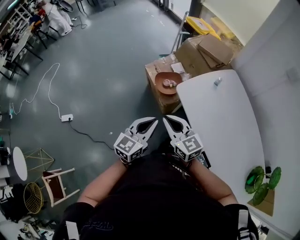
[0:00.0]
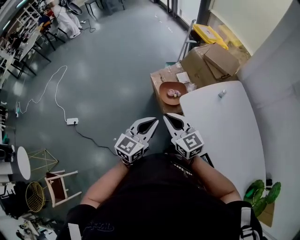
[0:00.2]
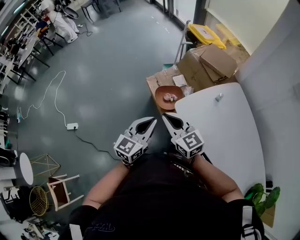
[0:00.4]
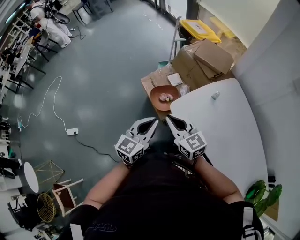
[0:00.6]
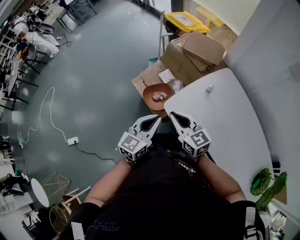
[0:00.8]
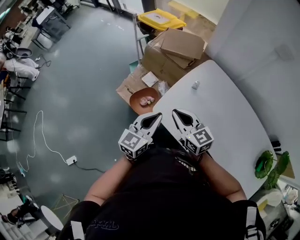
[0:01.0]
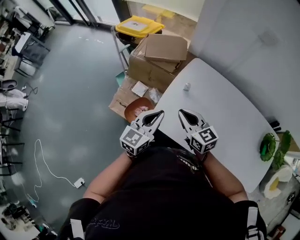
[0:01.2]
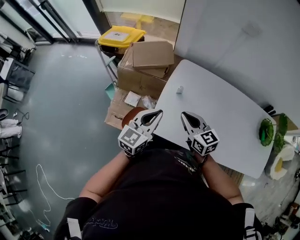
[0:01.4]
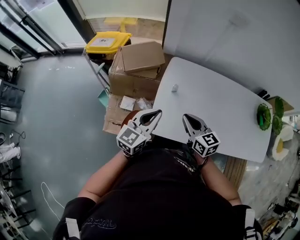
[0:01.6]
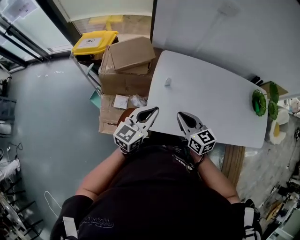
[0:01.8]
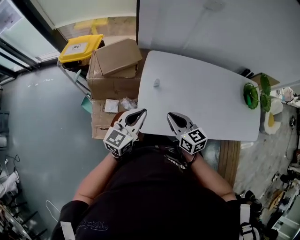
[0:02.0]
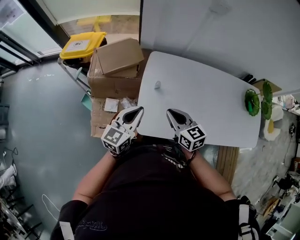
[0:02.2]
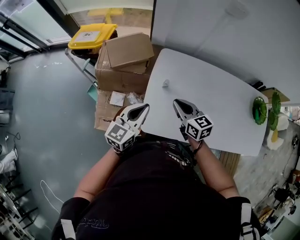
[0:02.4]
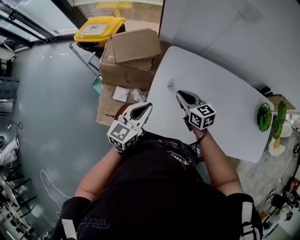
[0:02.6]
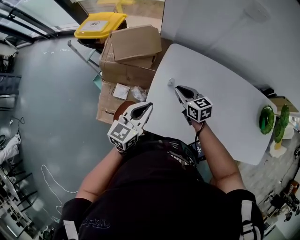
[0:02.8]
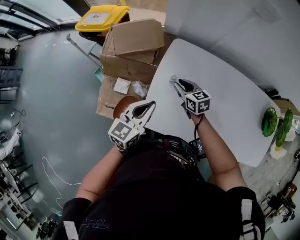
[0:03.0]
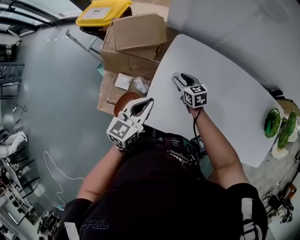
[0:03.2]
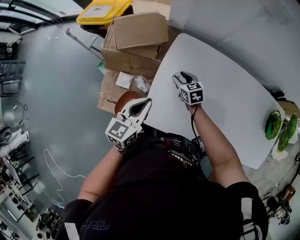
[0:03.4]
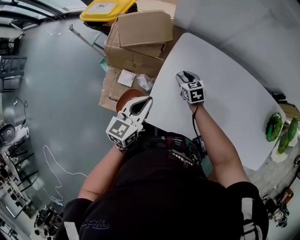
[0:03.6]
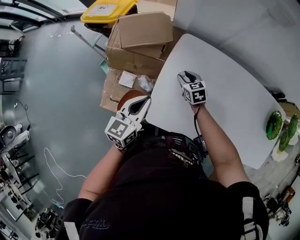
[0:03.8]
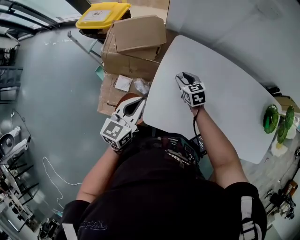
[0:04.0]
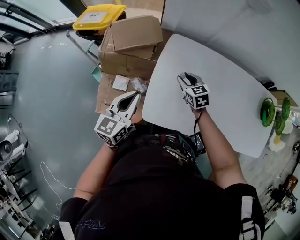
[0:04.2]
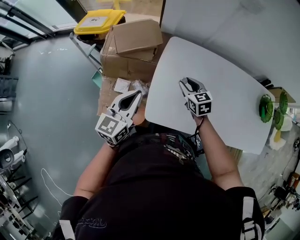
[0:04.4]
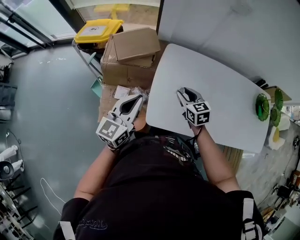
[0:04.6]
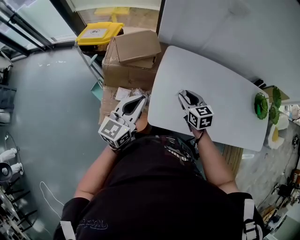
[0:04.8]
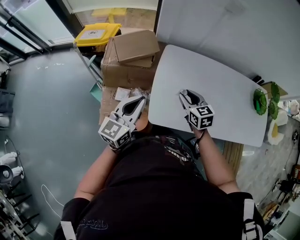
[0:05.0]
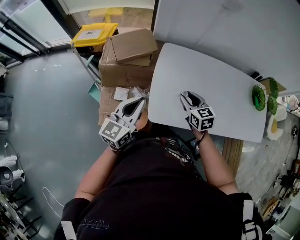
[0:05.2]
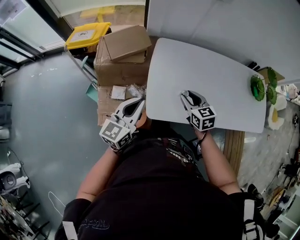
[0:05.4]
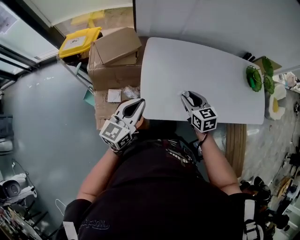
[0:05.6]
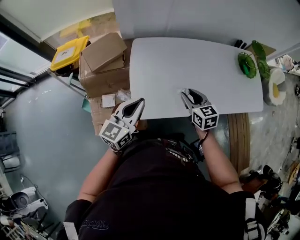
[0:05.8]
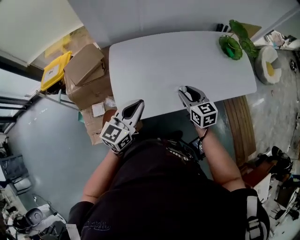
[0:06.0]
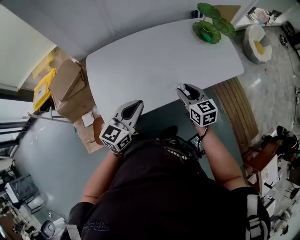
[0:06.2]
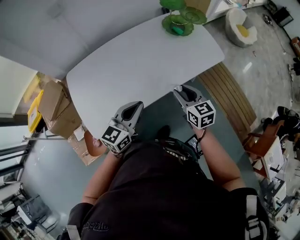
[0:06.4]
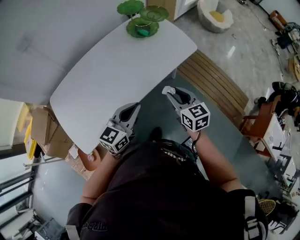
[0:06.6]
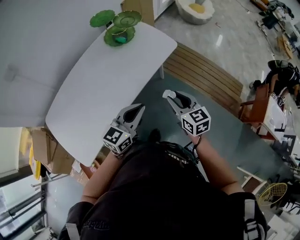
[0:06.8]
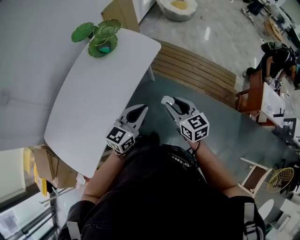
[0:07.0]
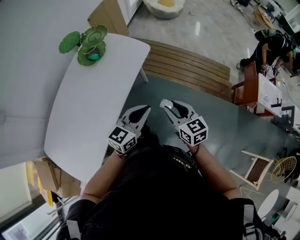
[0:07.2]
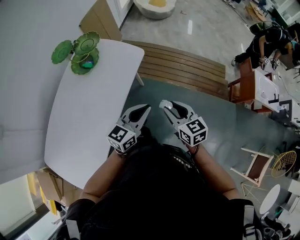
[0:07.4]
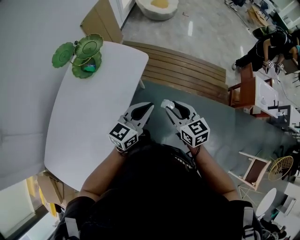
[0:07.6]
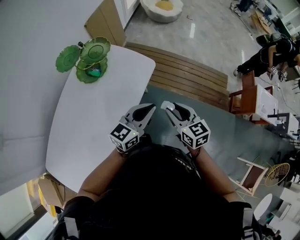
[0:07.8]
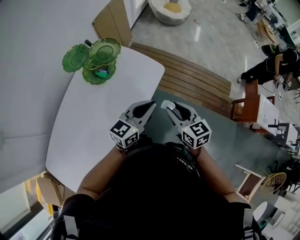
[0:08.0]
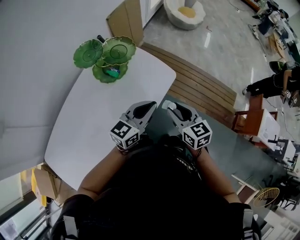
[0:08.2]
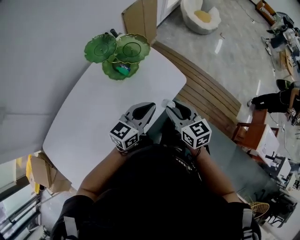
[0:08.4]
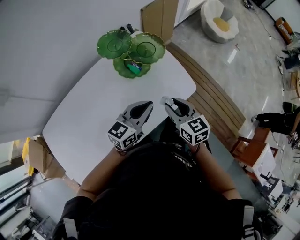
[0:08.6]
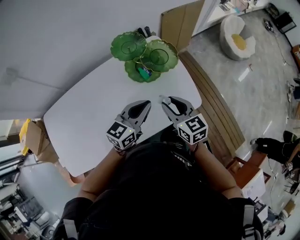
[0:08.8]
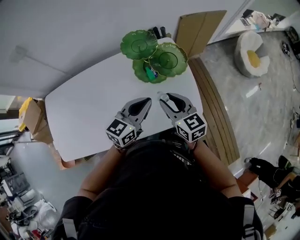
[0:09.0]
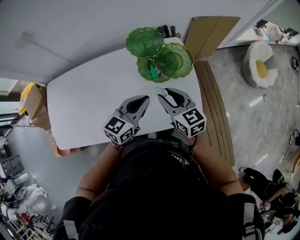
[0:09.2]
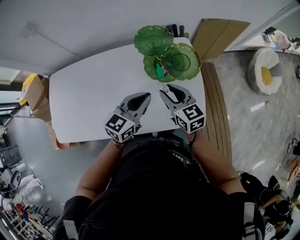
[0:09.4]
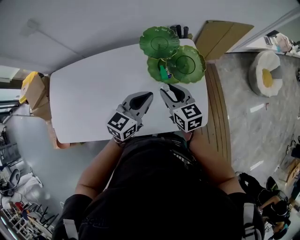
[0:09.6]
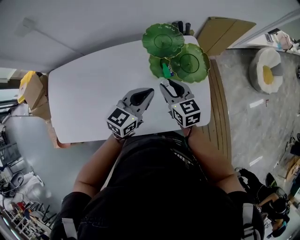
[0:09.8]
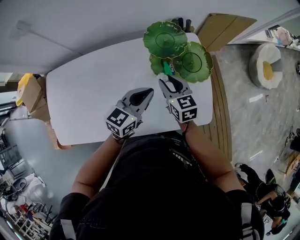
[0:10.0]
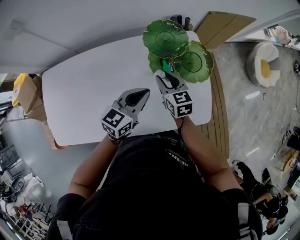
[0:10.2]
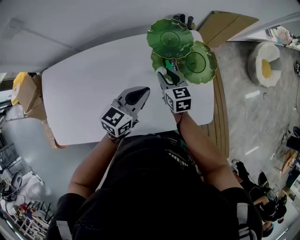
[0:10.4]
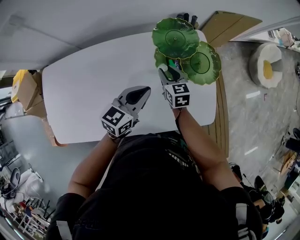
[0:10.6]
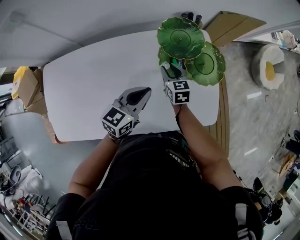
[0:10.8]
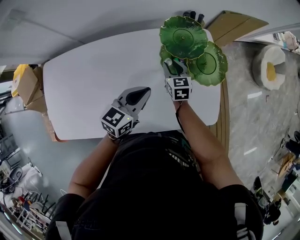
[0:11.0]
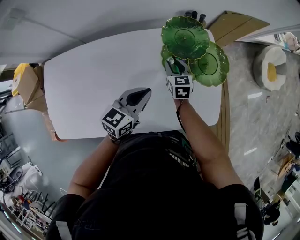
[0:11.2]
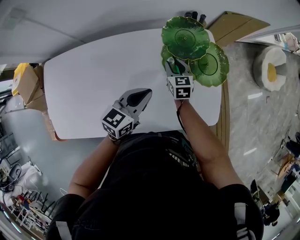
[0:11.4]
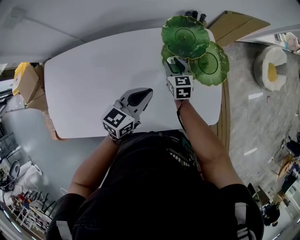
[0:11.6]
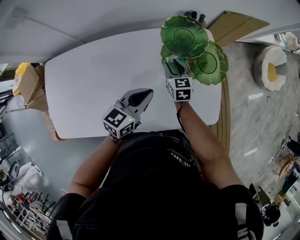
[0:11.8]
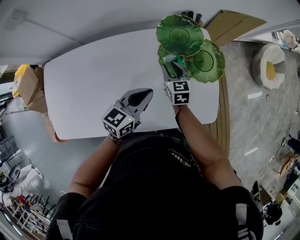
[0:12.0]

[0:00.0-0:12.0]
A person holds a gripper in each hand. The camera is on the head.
0:00.0 to 0:01.6: The left gripper ends up some 40 cm from where it was, and changes its angle by some 60 degrees, while the right gripper changes place by approximately 35 cm, and rotates approximately 60 degrees.
0:01.6 to 0:03.0: The left gripper moves forward and downward, approximately 10 cm. Meanwhile the right gripper heads forward and downward, covering approximately 25 cm.
0:03.0 to 0:04.4: The left gripper heads to the left, covering about 10 cm, while the right gripper is displaced backward by about 5 cm.
0:04.4 to 0:06.0: The right gripper changes place by about 30 cm, and rotates some 30 degrees, while the left gripper ends up approximately 20 cm from where it was, and swivels about 30 degrees.
0:06.0 to 0:07.6: The two grippers travel together, approximately 60 cm. The left gripper changes its angle by about 60 degrees. Meanwhile the right gripper turns by some 50 degrees.
0:07.6 to 0:09.0: The left gripper ends up roughly 35 cm from where it was, and changes its angle by approximately 50 degrees. Meanwhile the right gripper ends up about 40 cm from where it was, and turns by about 50 degrees.
0:09.0 to 0:10.4: The right gripper goes approximately 20 cm forward, downward and to the left, while the left gripper travels to the left, forward and downward by approximately 15 cm.

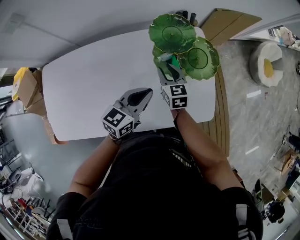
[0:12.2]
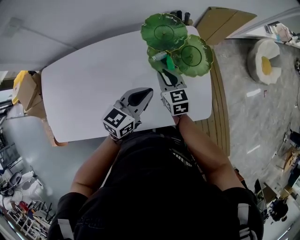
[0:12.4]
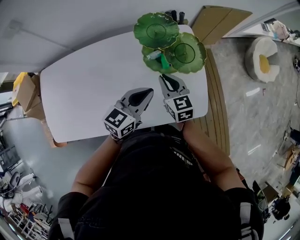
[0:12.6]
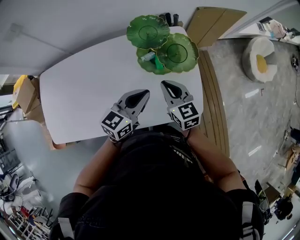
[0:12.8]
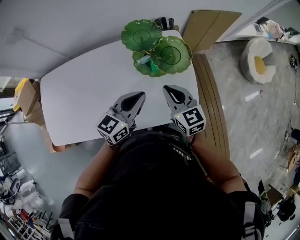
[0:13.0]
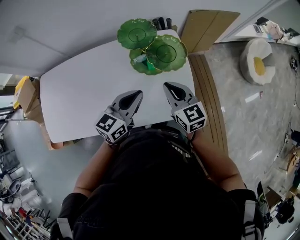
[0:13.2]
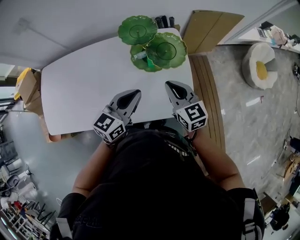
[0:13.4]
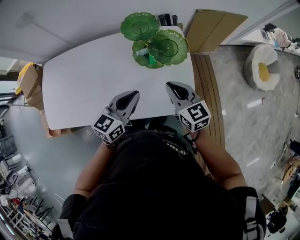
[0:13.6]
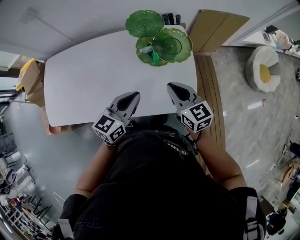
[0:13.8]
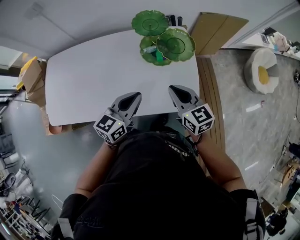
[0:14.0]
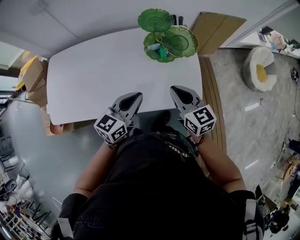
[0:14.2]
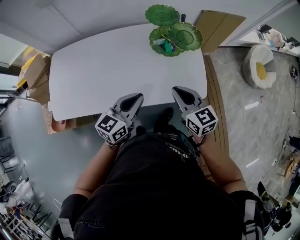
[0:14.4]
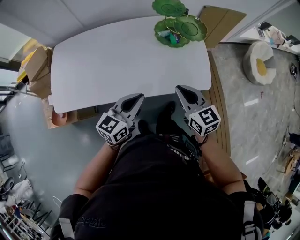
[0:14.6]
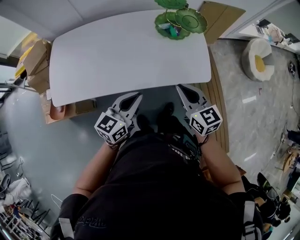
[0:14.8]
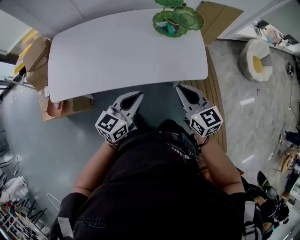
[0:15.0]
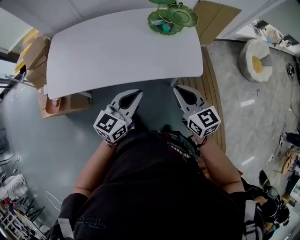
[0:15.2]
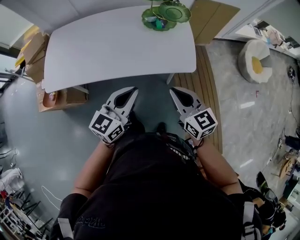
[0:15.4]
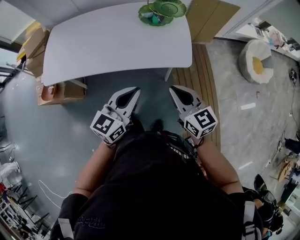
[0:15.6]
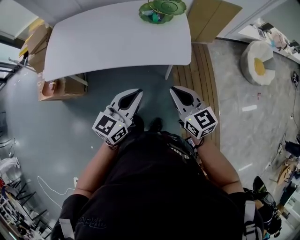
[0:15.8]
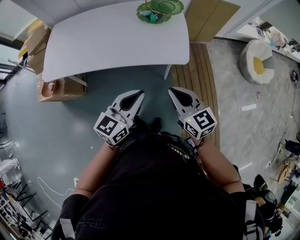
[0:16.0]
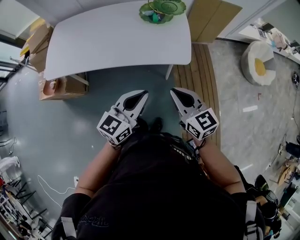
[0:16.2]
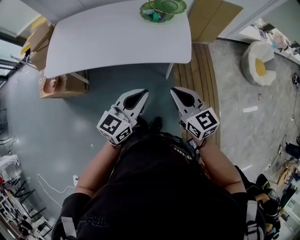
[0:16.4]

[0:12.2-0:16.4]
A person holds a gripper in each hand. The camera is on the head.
0:12.2 to 0:13.6: The right gripper goes approximately 25 cm to the right, upward and backward, rotates approximately 20 degrees, and closes, while the left gripper is displaced to the right, backward and upward by approximately 15 cm.
0:13.6 to 0:15.0: The right gripper shifts about 25 cm backward, while the left gripper travels backward and to the left by roughly 25 cm.
0:15.0 to 0:16.4: Both grippers travel together to the right and backward, roughly 20 cm.

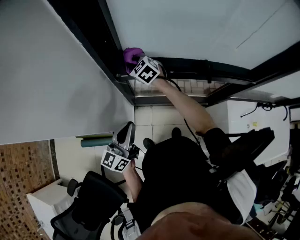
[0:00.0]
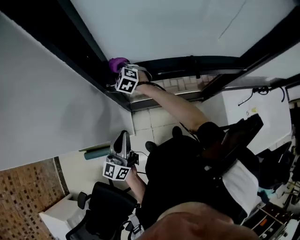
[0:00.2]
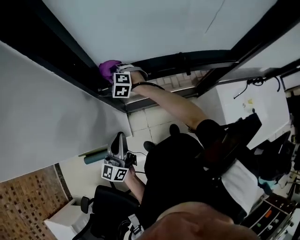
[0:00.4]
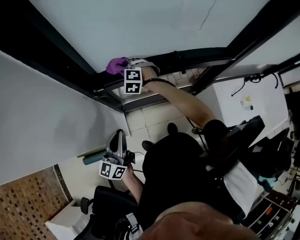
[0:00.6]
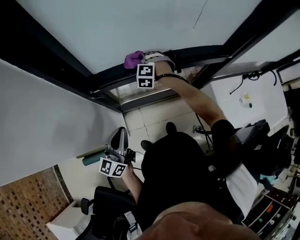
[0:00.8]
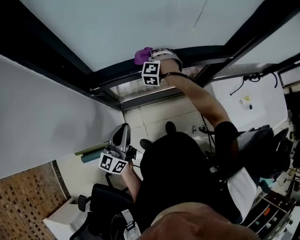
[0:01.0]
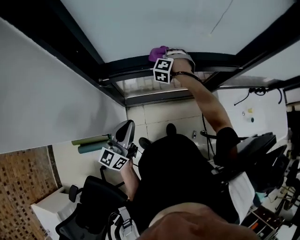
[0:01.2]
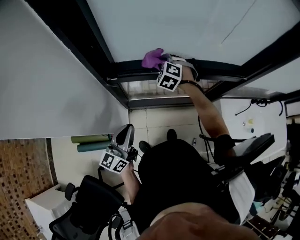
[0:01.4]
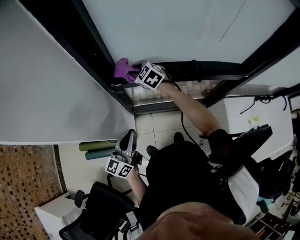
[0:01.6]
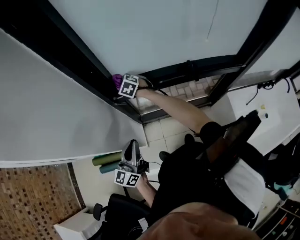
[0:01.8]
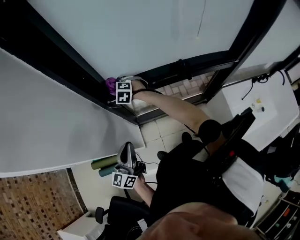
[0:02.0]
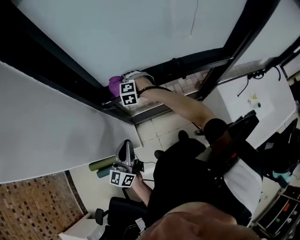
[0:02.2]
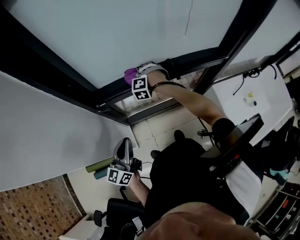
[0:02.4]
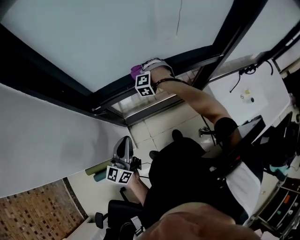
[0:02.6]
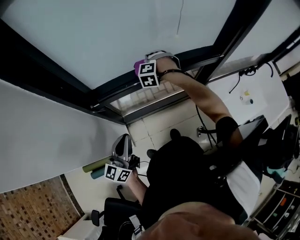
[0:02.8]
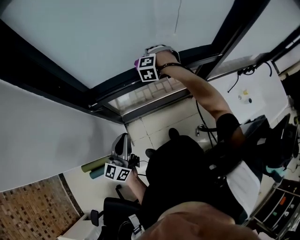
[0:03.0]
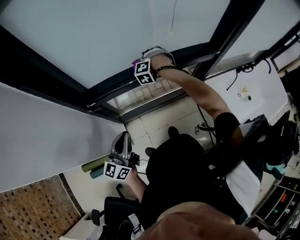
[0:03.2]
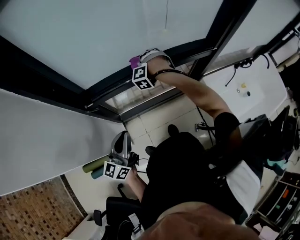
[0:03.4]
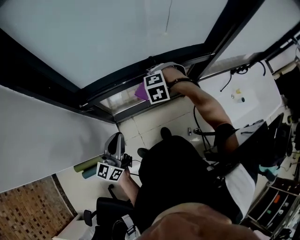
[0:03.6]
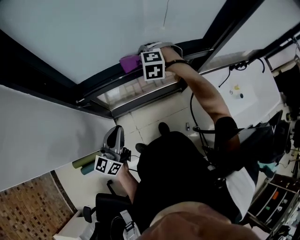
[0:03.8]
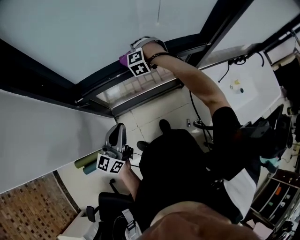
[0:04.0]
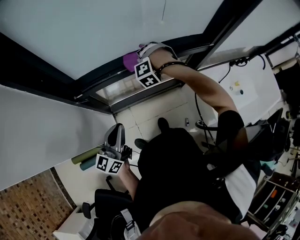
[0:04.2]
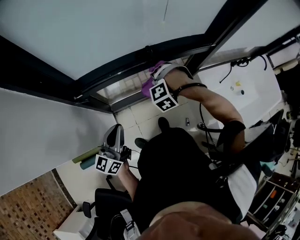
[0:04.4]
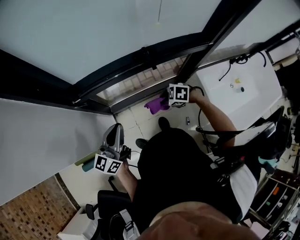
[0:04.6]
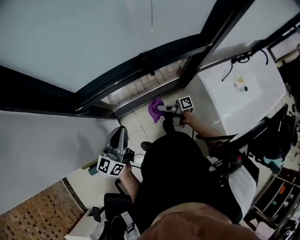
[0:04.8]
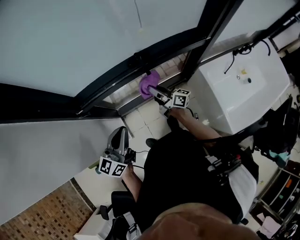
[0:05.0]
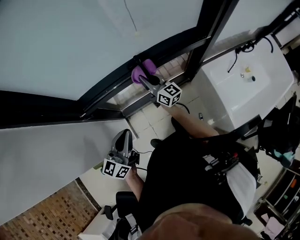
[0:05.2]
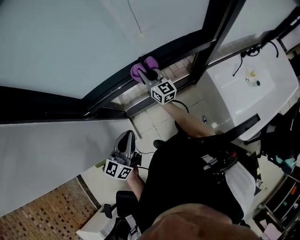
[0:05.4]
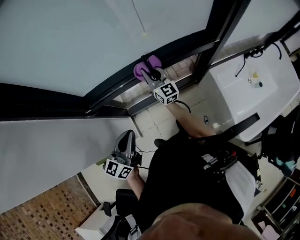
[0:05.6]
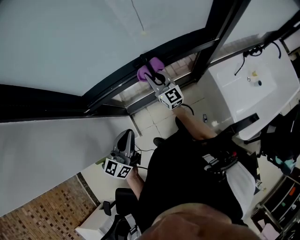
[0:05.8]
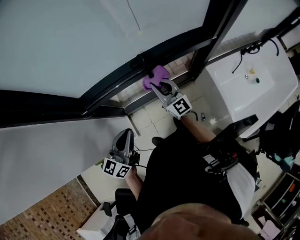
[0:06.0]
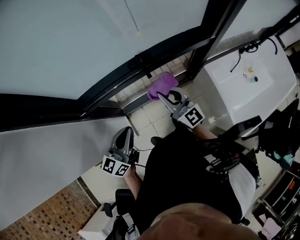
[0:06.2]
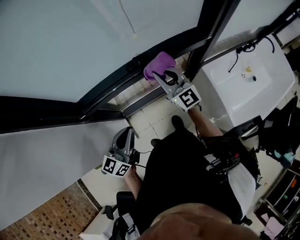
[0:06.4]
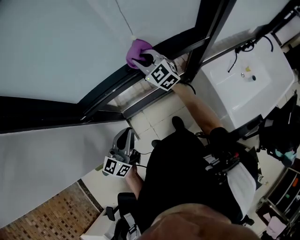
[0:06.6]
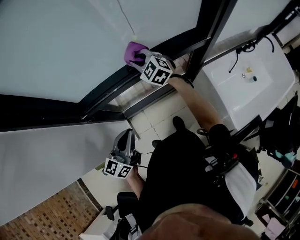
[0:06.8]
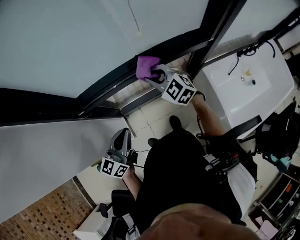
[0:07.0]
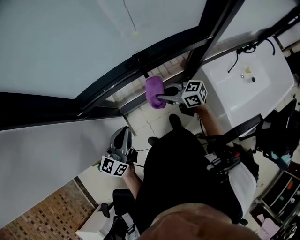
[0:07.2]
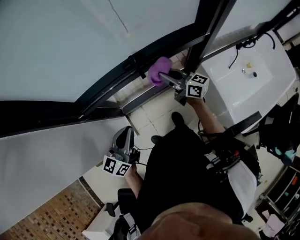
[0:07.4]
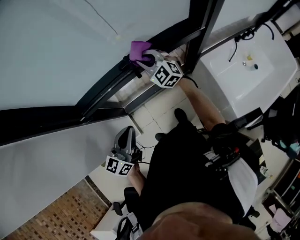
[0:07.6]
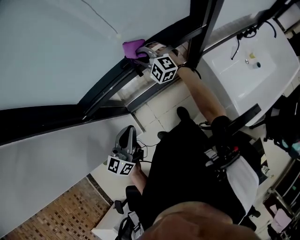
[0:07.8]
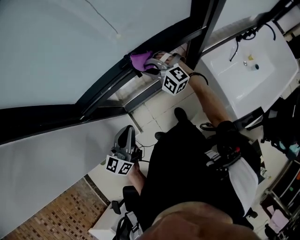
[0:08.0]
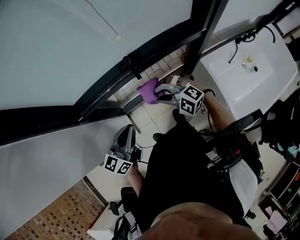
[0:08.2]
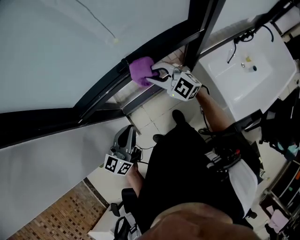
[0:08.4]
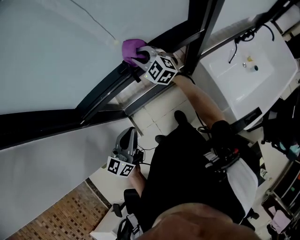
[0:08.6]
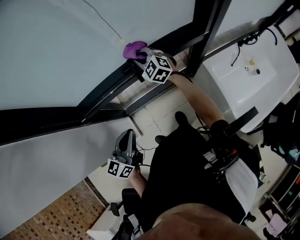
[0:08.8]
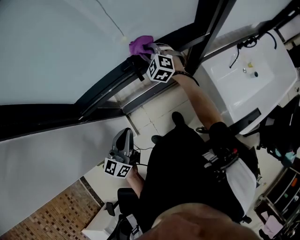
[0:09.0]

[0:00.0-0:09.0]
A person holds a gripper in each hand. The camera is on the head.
0:00.0 to 0:01.6: The right gripper reaches approximately 5 cm downward, then returns.
0:01.6 to 0:03.0: The left gripper ends up about 5 cm from where it was; the right gripper goes downward and returns, approximately 10 cm each way, and swivels about 60 degrees.
0:03.0 to 0:04.4: The right gripper moves forward and backward over roughly 15 cm, changing direction 2 times, and swivels some 30 degrees.
0:04.4 to 0:06.0: The left gripper moves some 5 cm. The right gripper moves approximately 10 cm downward and comes back, and points its fingers roughly 70 degrees further upward.
0:06.0 to 0:07.6: The right gripper swings forward and backward, about 20 cm each way, with 3 reversals, and rotates some 40 degrees.
0:07.6 to 0:09.0: The right gripper moves some 20 cm backward and comes back, and rotates about 20 degrees.
